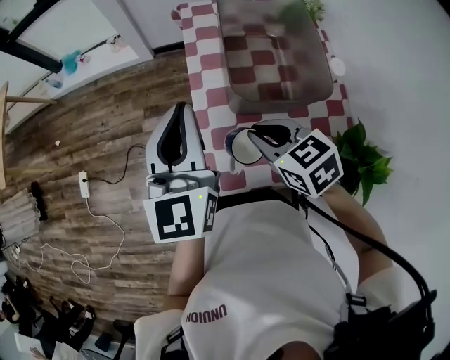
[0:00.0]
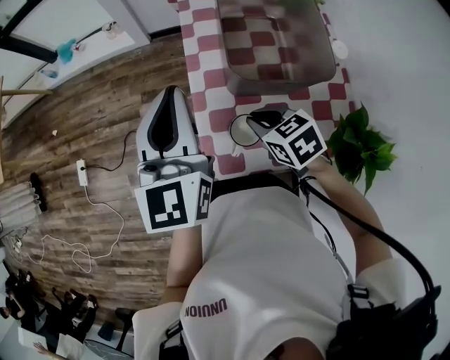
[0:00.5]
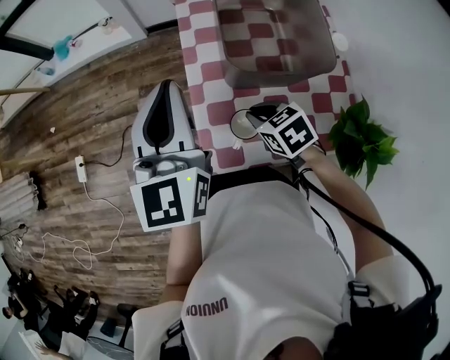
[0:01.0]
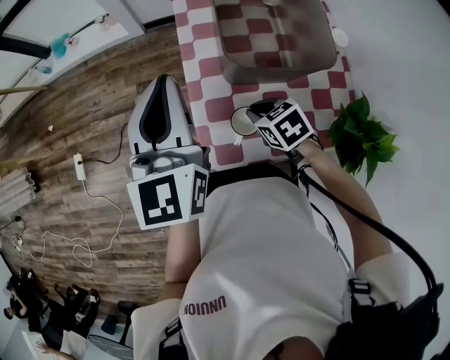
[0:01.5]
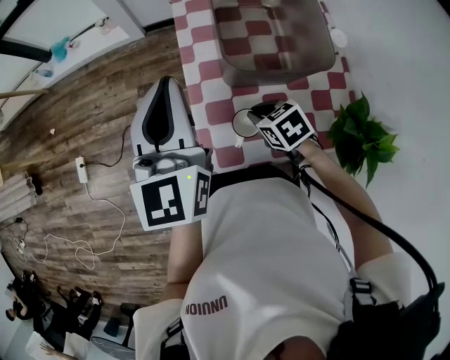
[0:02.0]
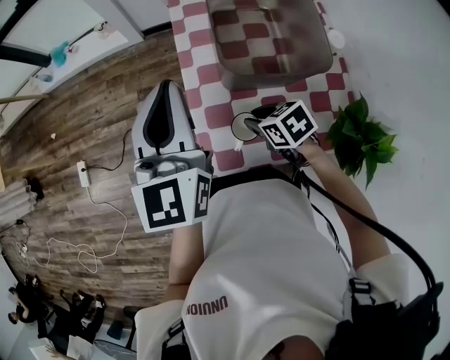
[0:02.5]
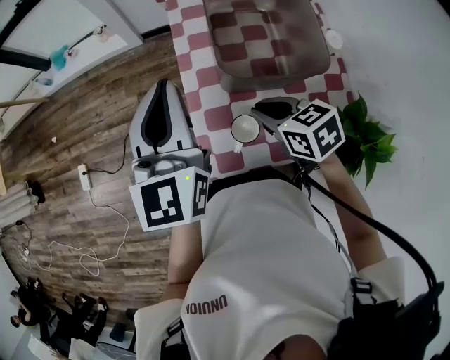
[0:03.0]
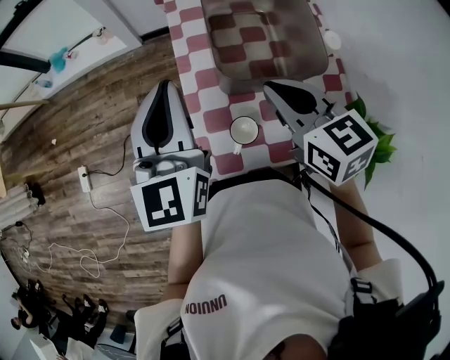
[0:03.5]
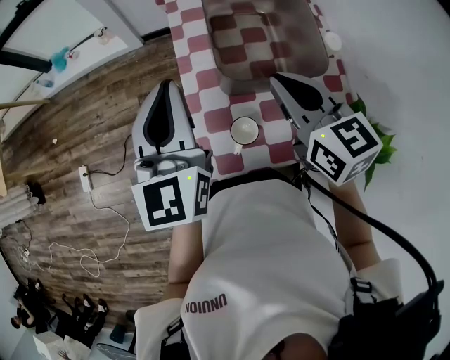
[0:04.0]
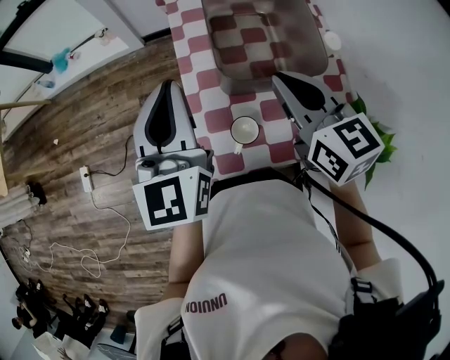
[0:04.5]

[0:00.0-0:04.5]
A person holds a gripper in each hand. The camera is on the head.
0:00.0 to 0:02.0: The right gripper moves downward, approximately 15 cm.
0:02.0 to 0:04.5: The right gripper moves upward, roughly 25 cm, and points its fingers some 40 degrees further upward.

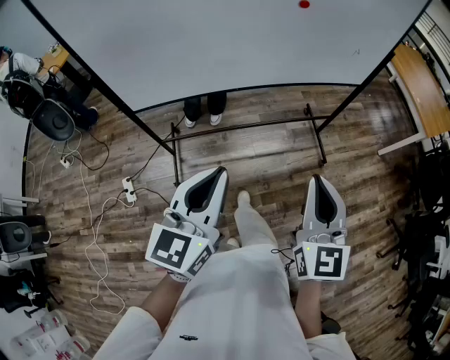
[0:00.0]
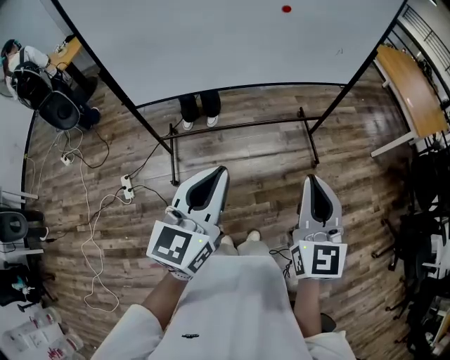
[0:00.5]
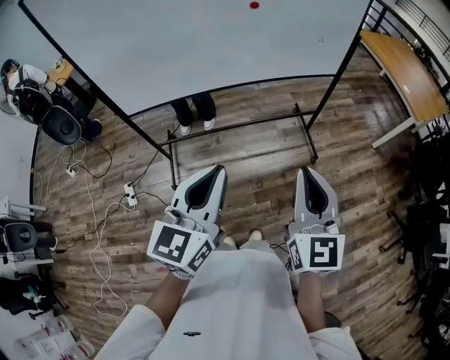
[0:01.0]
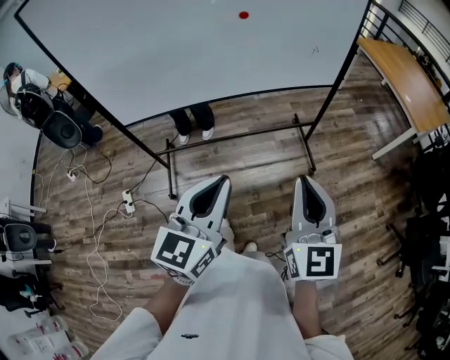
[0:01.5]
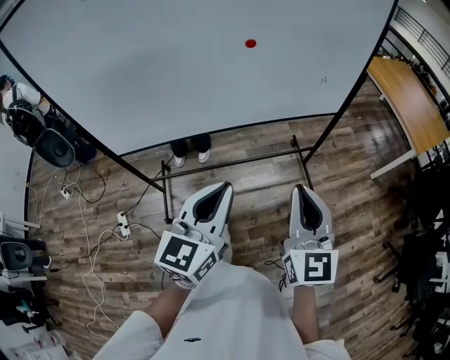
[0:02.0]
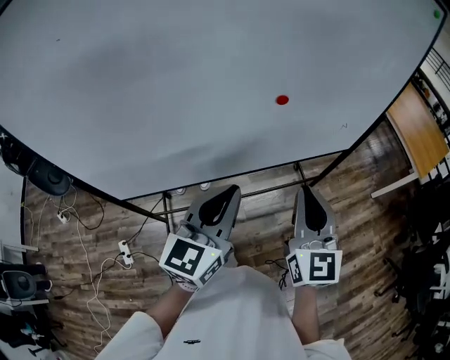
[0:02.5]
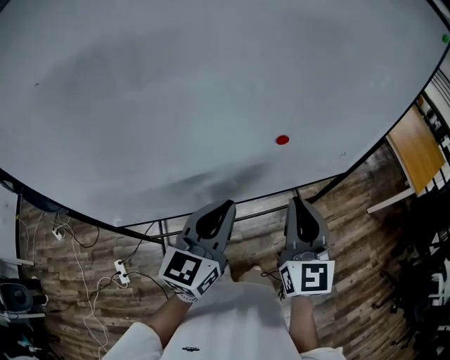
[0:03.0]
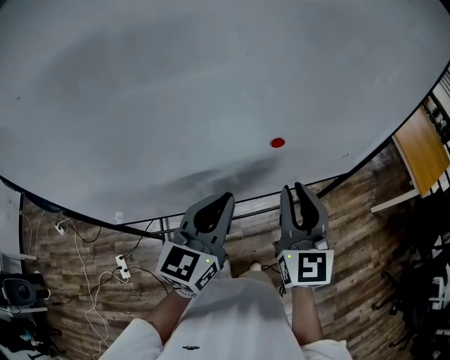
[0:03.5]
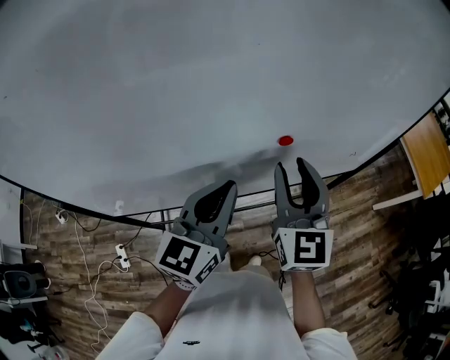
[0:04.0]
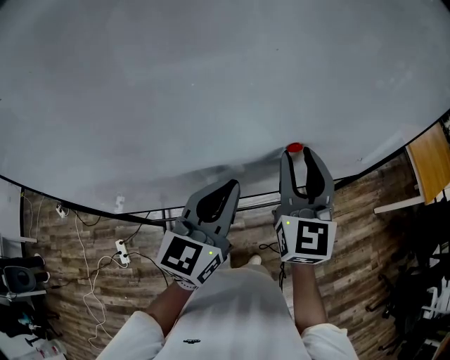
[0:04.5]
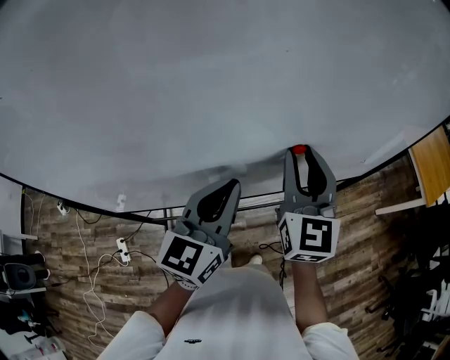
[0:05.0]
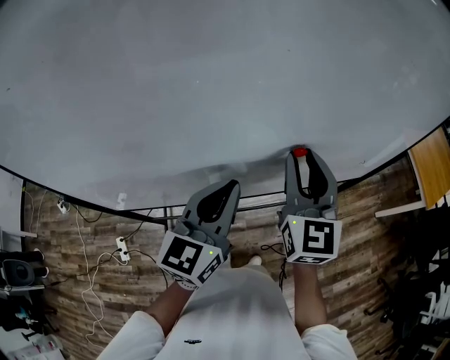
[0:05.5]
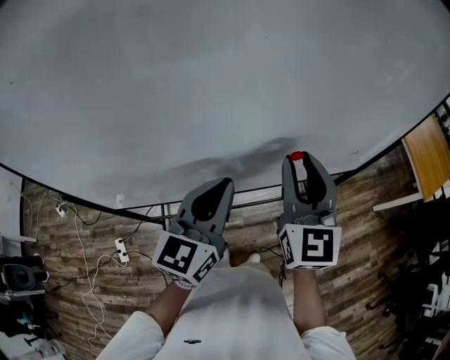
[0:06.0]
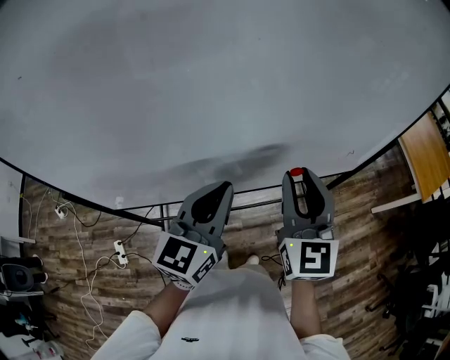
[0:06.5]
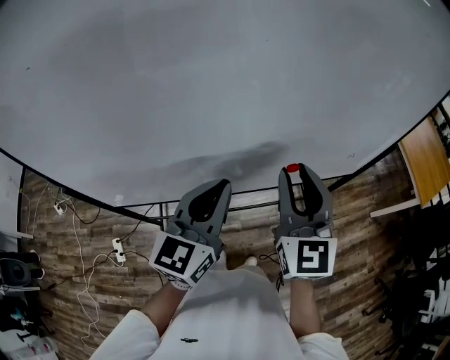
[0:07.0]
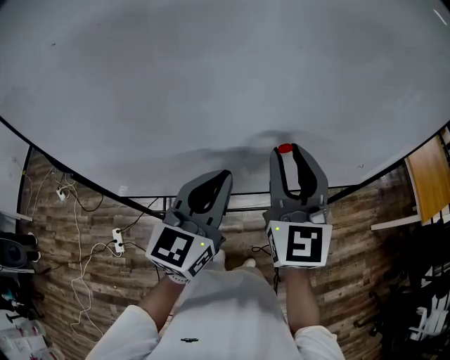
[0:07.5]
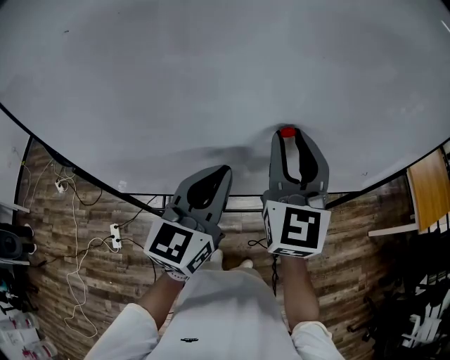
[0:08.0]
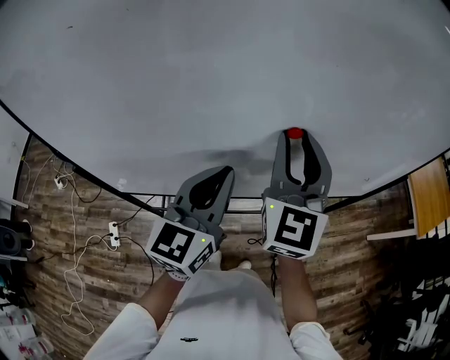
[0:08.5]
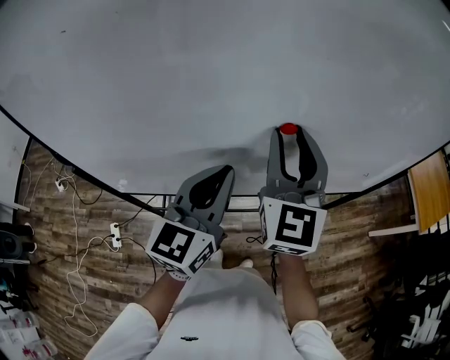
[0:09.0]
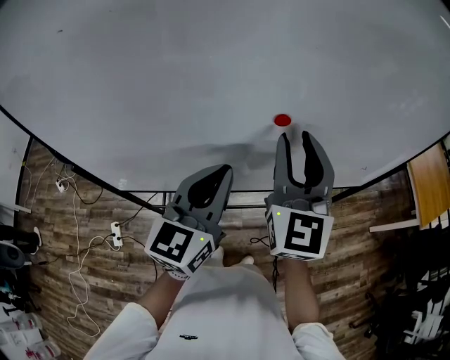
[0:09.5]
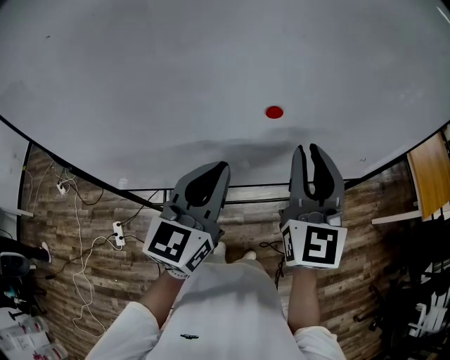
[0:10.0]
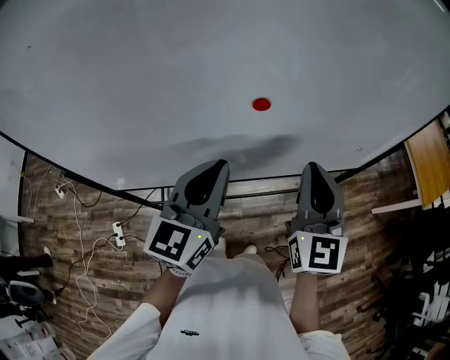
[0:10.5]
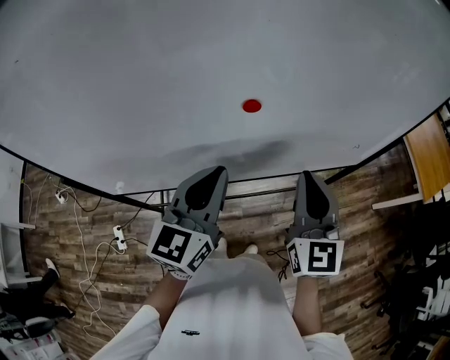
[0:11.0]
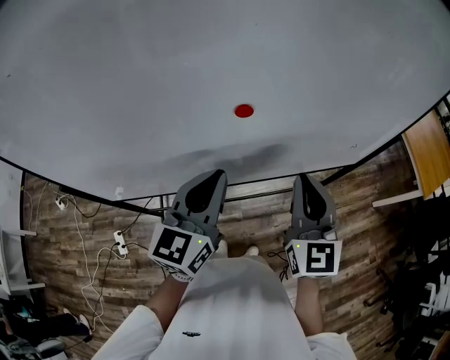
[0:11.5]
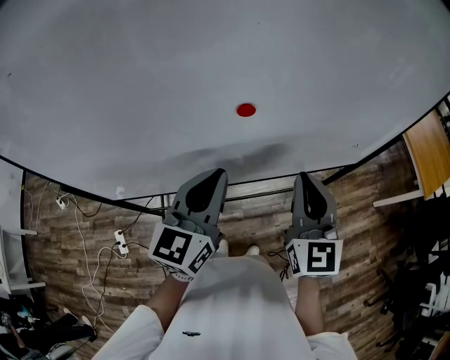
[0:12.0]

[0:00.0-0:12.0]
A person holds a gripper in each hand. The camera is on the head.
0:00.0 to 0:02.0: The left gripper goes about 15 cm to the right and forward, while the right gripper moves forward and to the right, about 10 cm.
0:02.0 to 0:04.0: The left gripper shifts approximately 30 cm forward. Meanwhile the right gripper heads forward and to the left, covering roughly 35 cm, and opens up.
0:04.0 to 0:06.0: There are only small adjustments of the grippers.
0:06.0 to 0:08.0: The right gripper moves to the left and upward, about 10 cm; the left gripper shifts roughly 5 cm to the left.
0:08.0 to 0:10.0: The right gripper shifts roughly 5 cm to the right.
0:10.0 to 0:12.0: The right gripper heads downward, covering roughly 10 cm.

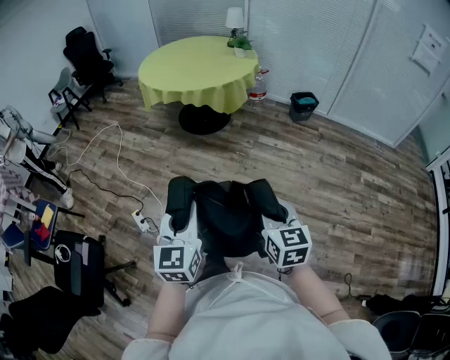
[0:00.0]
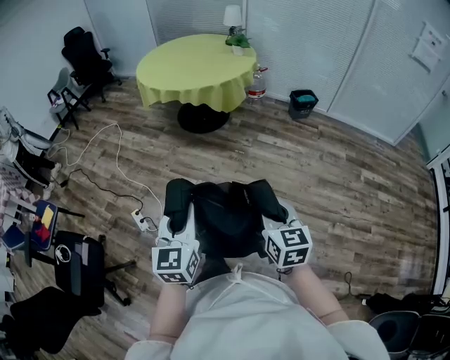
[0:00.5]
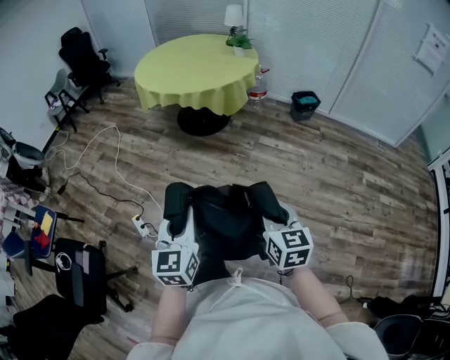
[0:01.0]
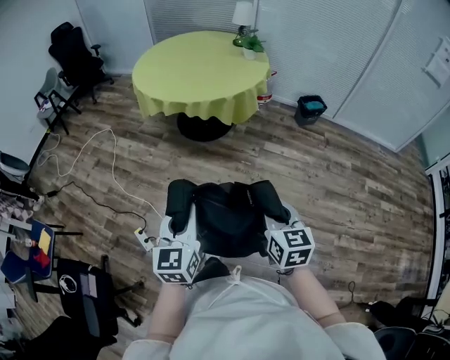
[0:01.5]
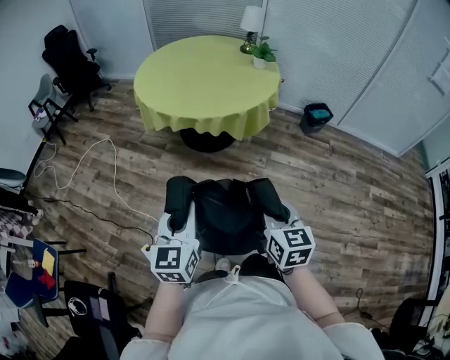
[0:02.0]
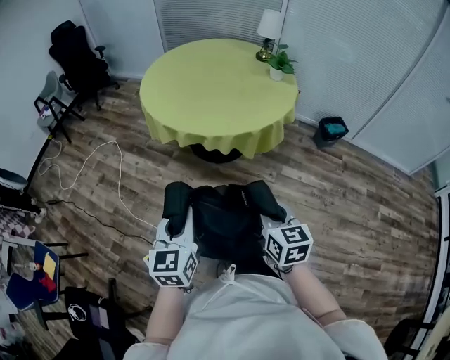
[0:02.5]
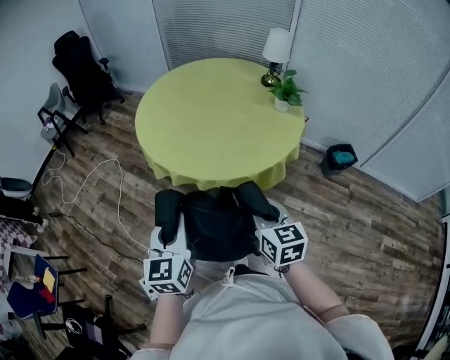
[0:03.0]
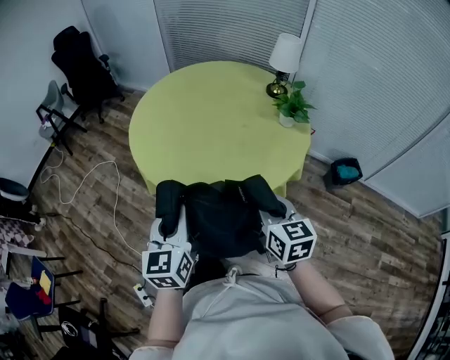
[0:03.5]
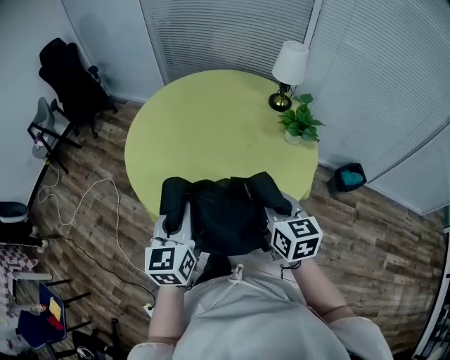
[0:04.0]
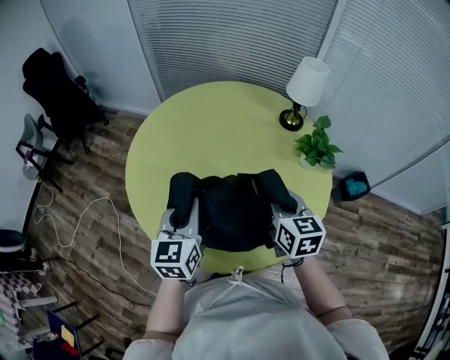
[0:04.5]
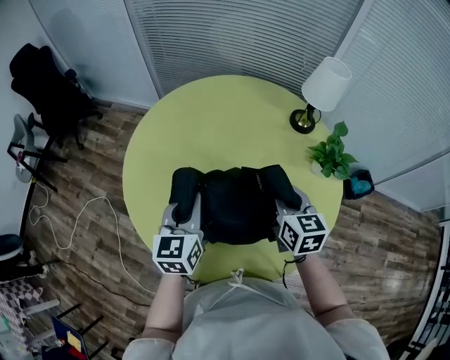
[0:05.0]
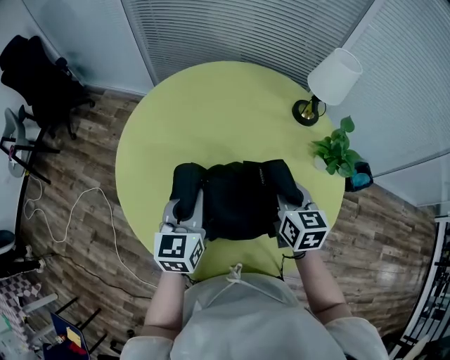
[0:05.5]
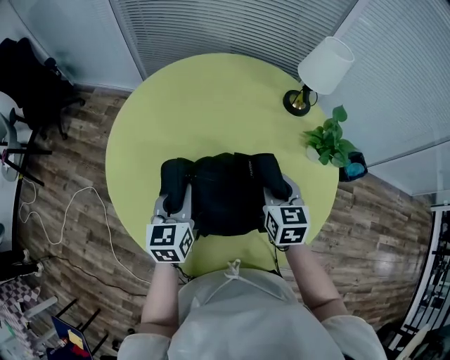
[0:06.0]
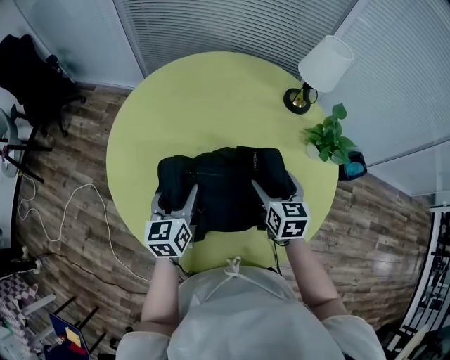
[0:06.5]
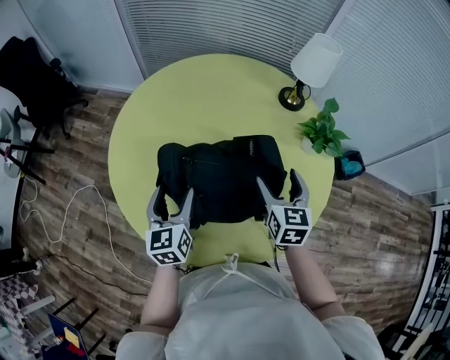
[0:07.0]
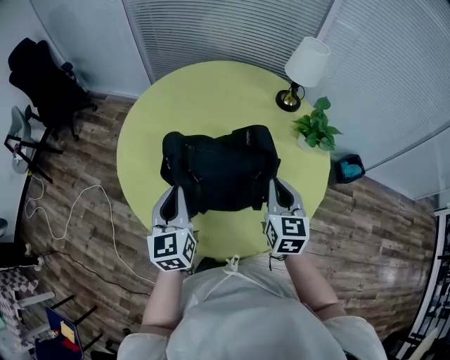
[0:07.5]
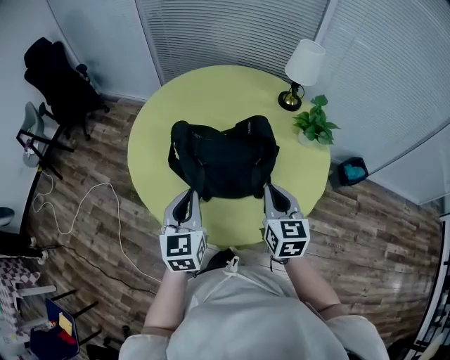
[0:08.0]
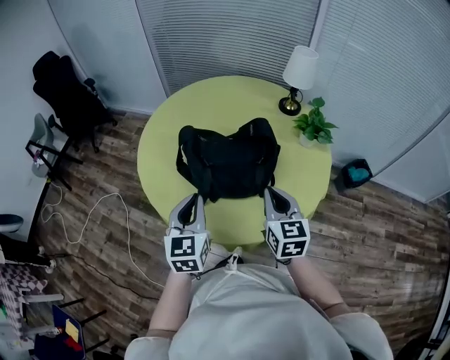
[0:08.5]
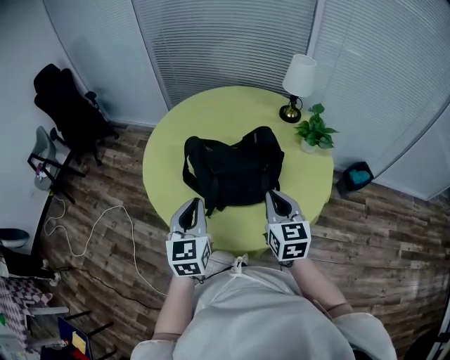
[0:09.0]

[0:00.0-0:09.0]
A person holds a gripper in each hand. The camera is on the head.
0:00.0 to 0:02.0: The two grippers travel together, forward and to the left, about 40 cm.
0:02.0 to 0:04.5: The two grippers travel together, forward, some 80 cm.
0:04.5 to 0:07.0: The left gripper shifts roughly 15 cm downward, forward and to the left, and opens its fingers, while the right gripper goes approximately 10 cm downward and forward, and opens up.
0:07.0 to 0:09.0: Both grippers move backward and upward, roughly 20 cm. The right gripper closes up. The left gripper closes up.

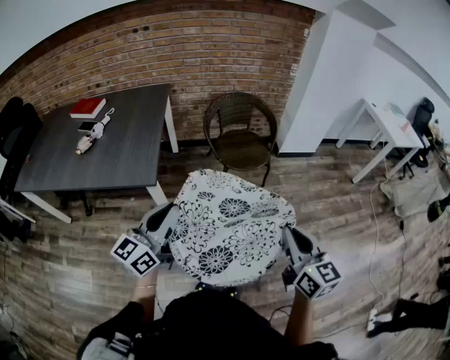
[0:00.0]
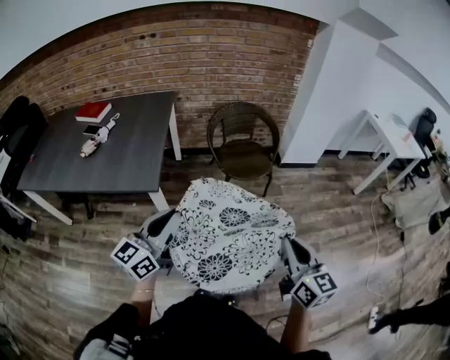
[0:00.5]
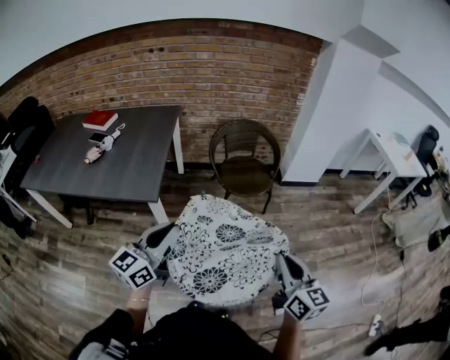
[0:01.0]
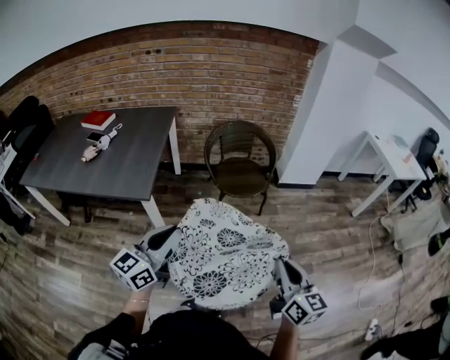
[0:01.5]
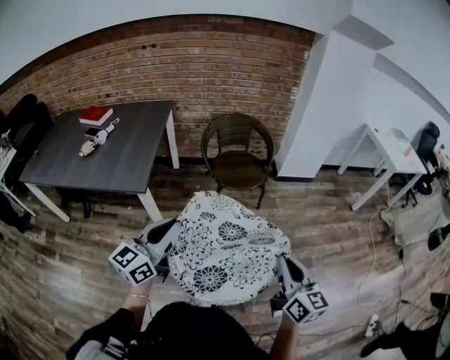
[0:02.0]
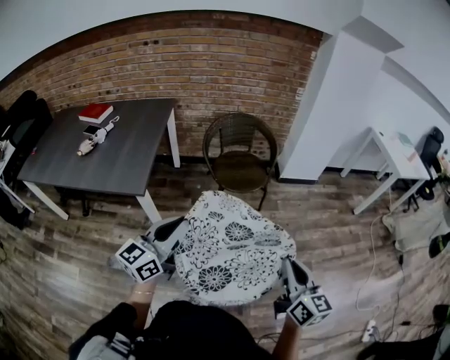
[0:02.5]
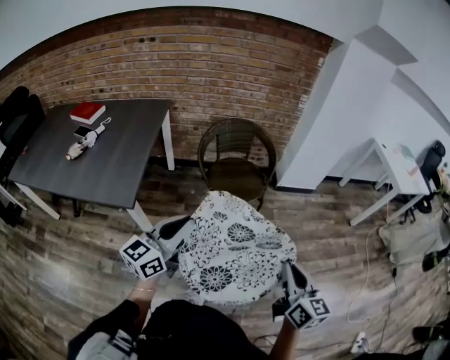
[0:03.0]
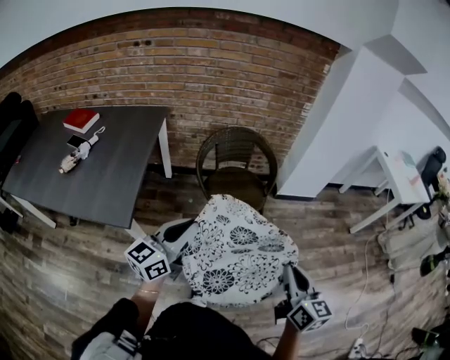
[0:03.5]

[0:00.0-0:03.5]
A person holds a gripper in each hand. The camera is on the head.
0:00.0 to 0:02.0: Both grippers travel together to the right, about 10 cm.
0:02.0 to 0:03.5: Both grippers move forward, some 25 cm.
